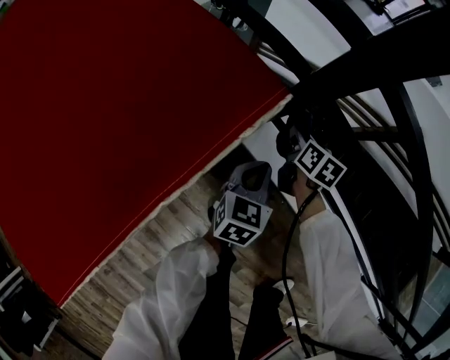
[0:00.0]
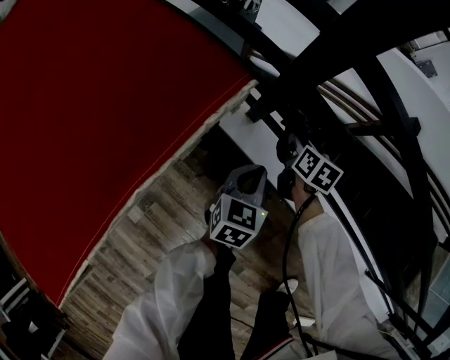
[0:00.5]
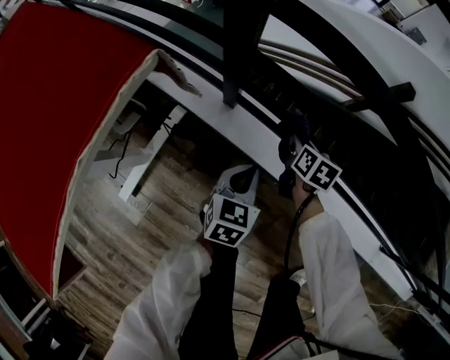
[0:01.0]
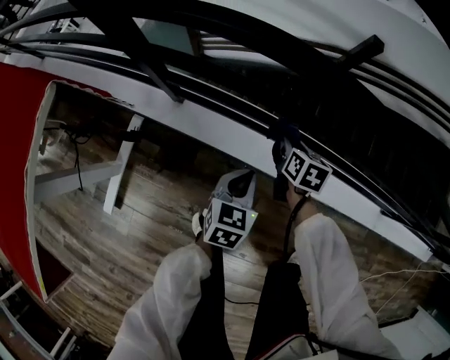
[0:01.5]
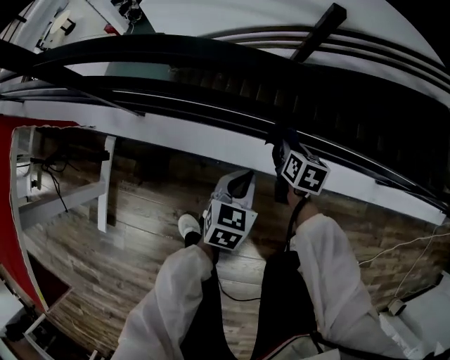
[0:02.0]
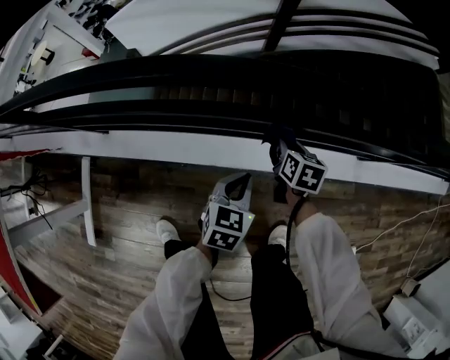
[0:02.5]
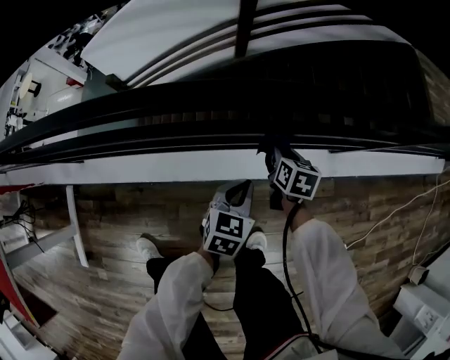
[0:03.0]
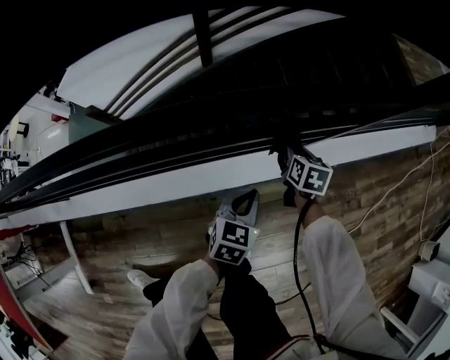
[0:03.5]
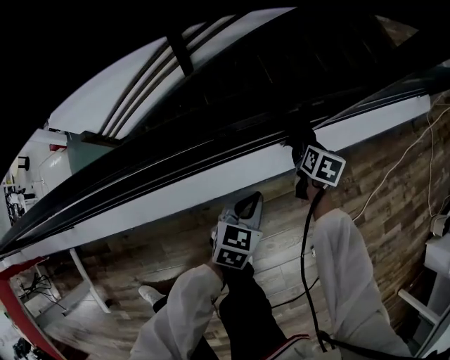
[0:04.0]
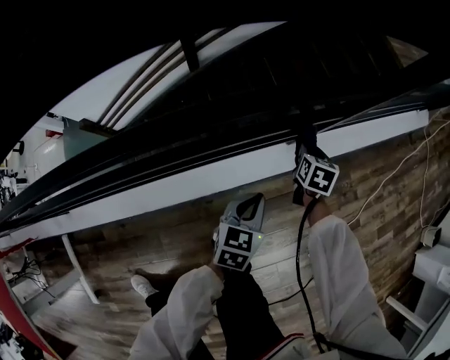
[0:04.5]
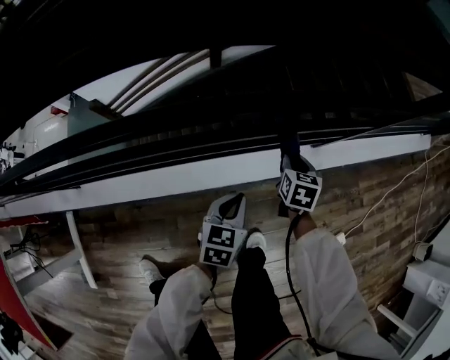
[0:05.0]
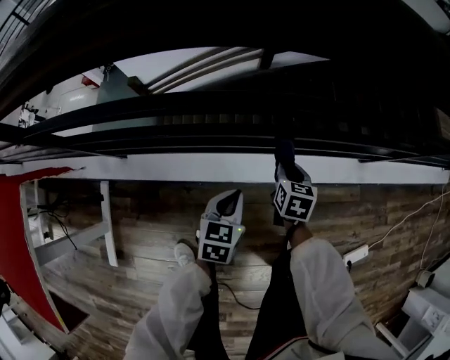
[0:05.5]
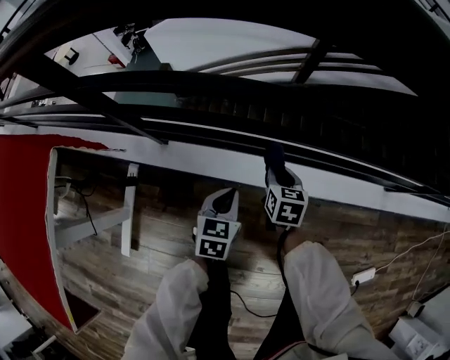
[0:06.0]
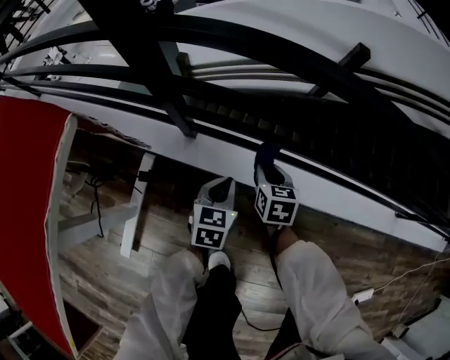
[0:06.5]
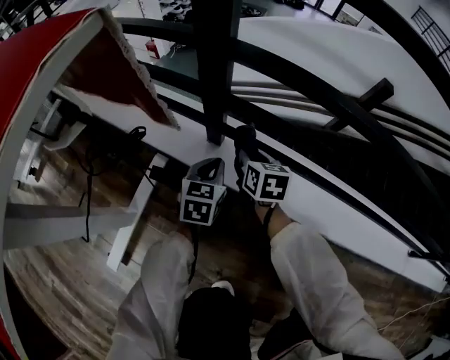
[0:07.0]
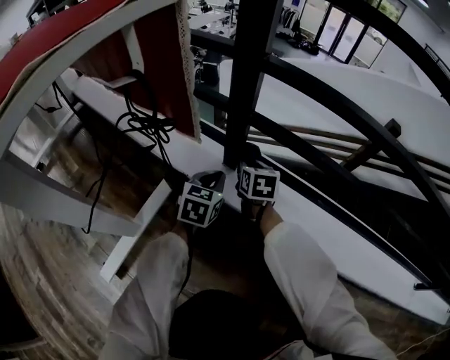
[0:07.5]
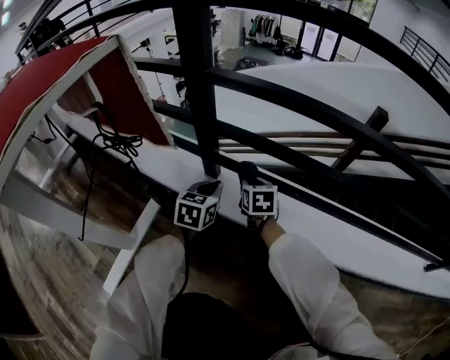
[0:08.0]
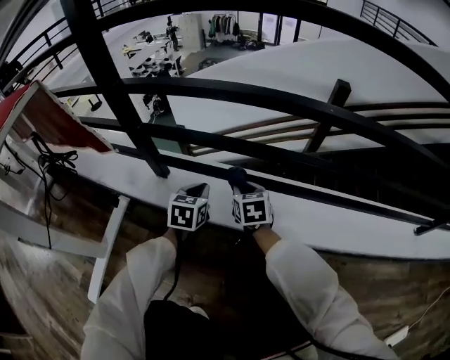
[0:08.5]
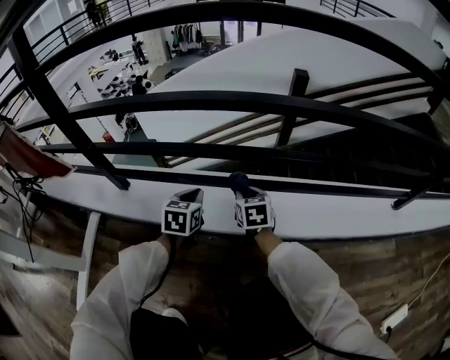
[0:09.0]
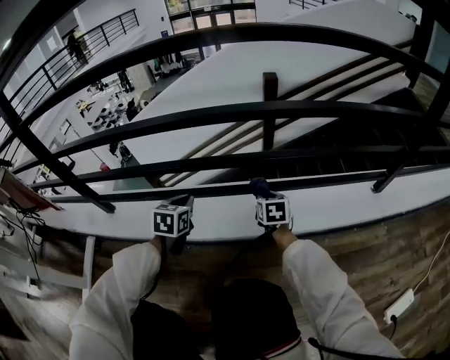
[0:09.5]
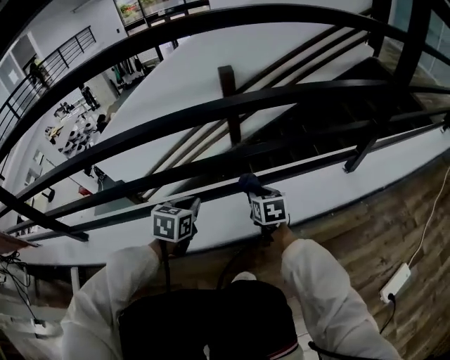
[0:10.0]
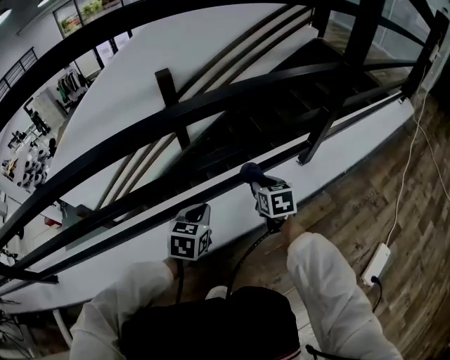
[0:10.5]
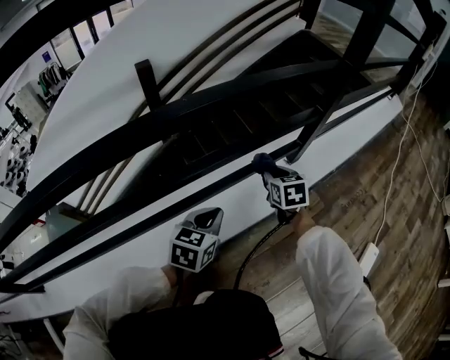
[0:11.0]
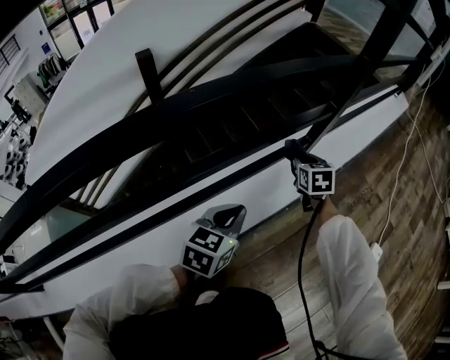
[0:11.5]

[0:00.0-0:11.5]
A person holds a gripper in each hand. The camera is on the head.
0:00.0 to 0:02.0: The pair of grippers is taken roughly 50 cm. The left gripper turns by roughly 30 degrees. Meanwhile the right gripper changes its angle by approximately 30 degrees.
0:02.0 to 0:04.0: The two grippers travel together, about 60 cm. The left gripper changes its angle by approximately 30 degrees. The right gripper rotates roughly 30 degrees.
0:04.0 to 0:06.0: Both grippers are carried about 80 cm. The left gripper swivels some 40 degrees. The right gripper turns by about 40 degrees.
0:06.0 to 0:07.5: The grippers both shift to the left and downward by some 40 cm. The left gripper changes its angle by roughly 20 degrees; the right gripper swivels about 30 degrees.
0:07.5 to 0:09.5: The pair of grippers is taken roughly 60 cm. The right gripper rotates about 30 degrees. The left gripper swivels some 20 degrees.
0:09.5 to 0:11.5: Both grippers are carried some 50 cm. The left gripper rotates about 50 degrees. Meanwhile the right gripper turns by approximately 30 degrees.

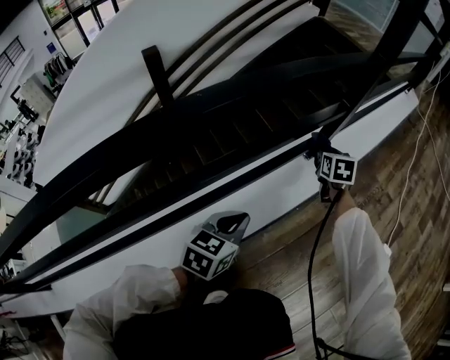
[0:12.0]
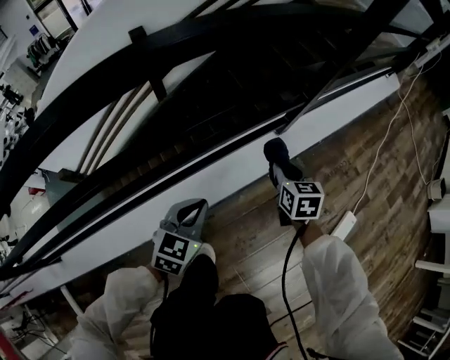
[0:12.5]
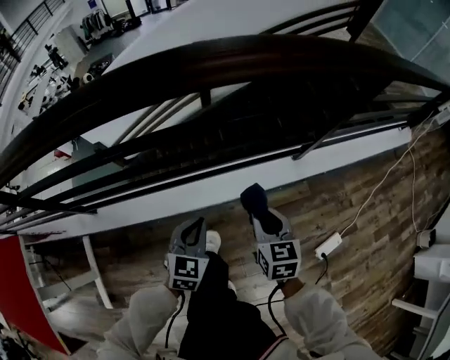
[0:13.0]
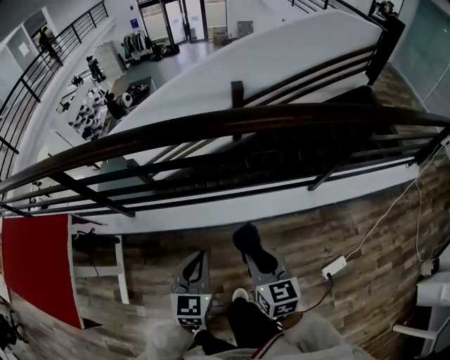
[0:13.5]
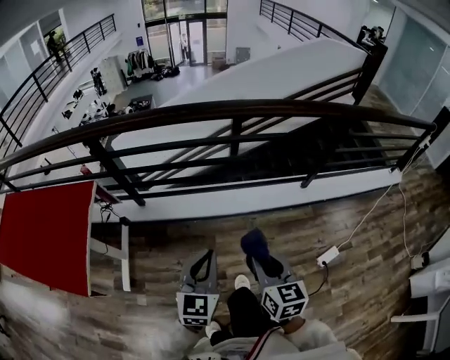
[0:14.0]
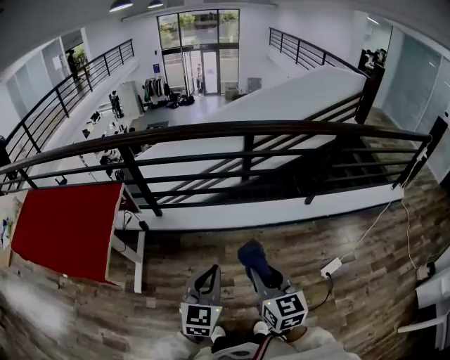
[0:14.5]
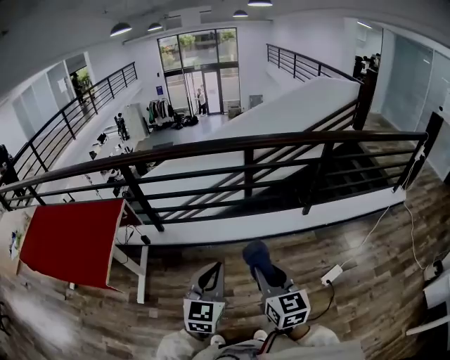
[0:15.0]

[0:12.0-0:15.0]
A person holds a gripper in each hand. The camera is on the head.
0:12.0 to 0:13.5: The two grippers travel together, about 50 cm. Both grippers move upward, about 60 cm. The left gripper rotates some 50 degrees. The right gripper rotates some 50 degrees.
0:13.5 to 0:15.0: The two grippers go about 40 cm backward and upward.

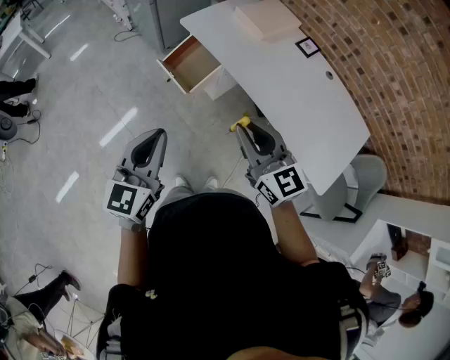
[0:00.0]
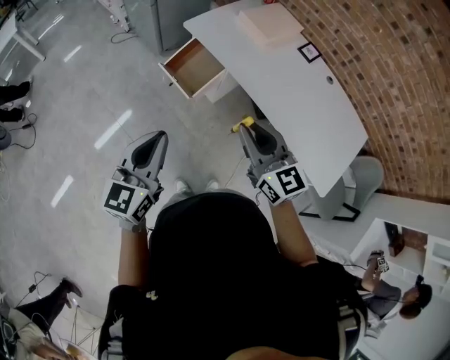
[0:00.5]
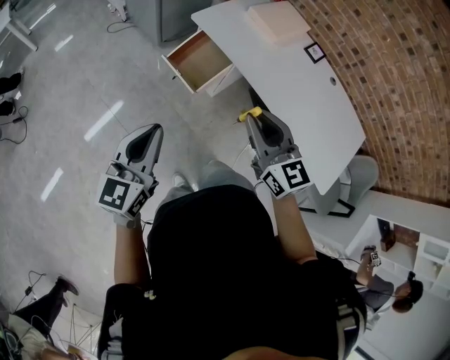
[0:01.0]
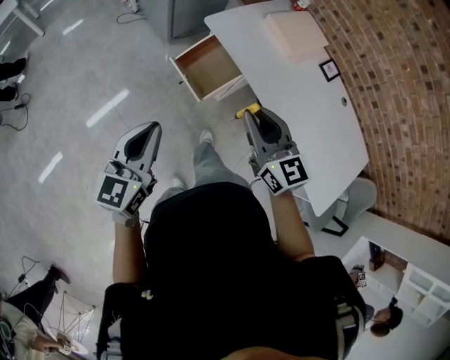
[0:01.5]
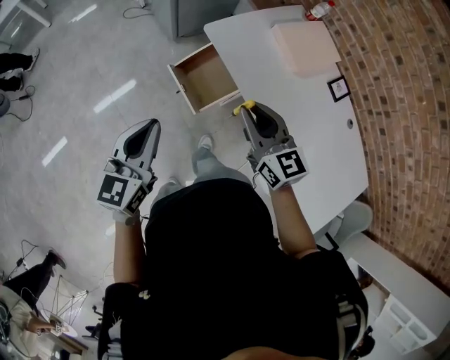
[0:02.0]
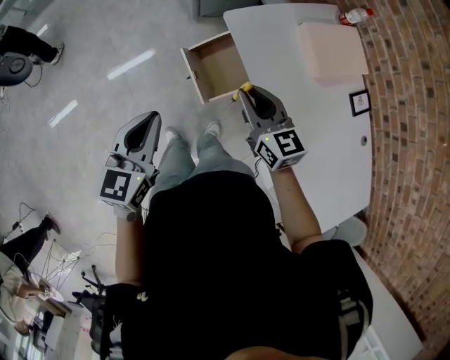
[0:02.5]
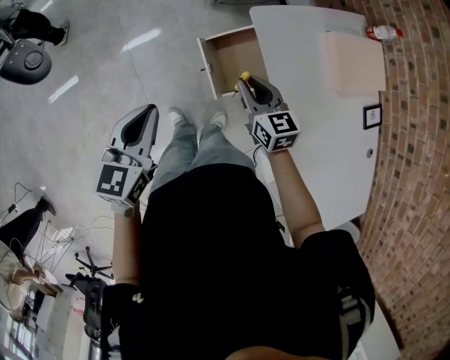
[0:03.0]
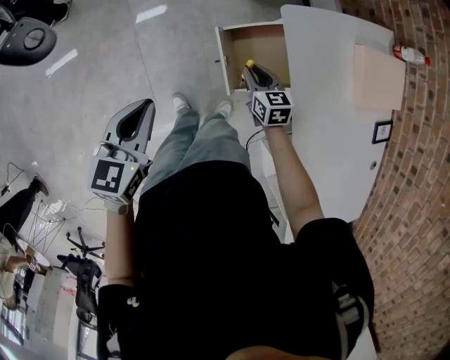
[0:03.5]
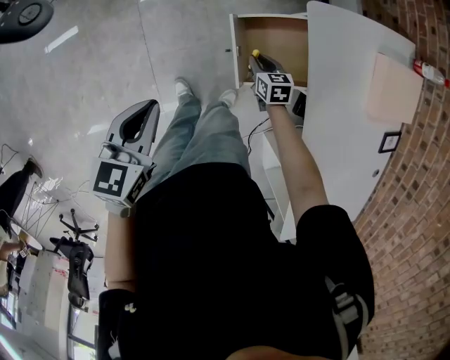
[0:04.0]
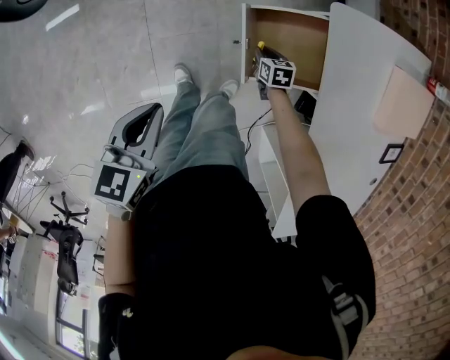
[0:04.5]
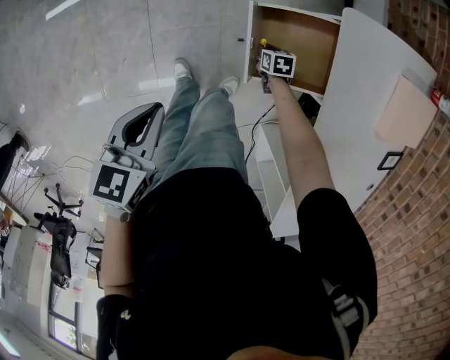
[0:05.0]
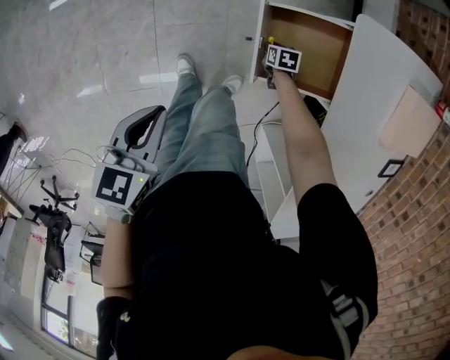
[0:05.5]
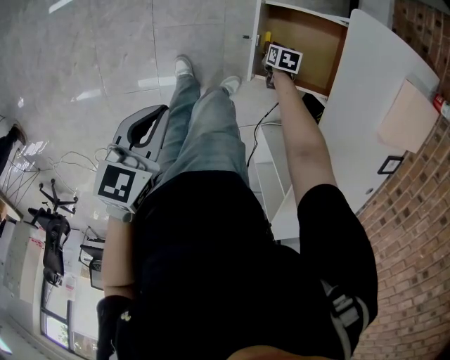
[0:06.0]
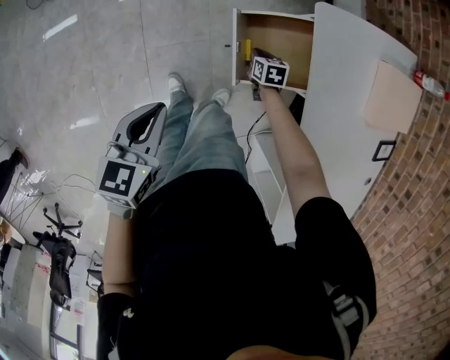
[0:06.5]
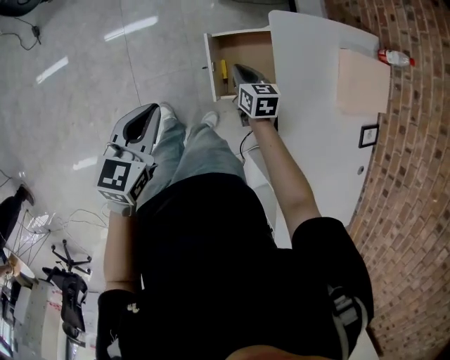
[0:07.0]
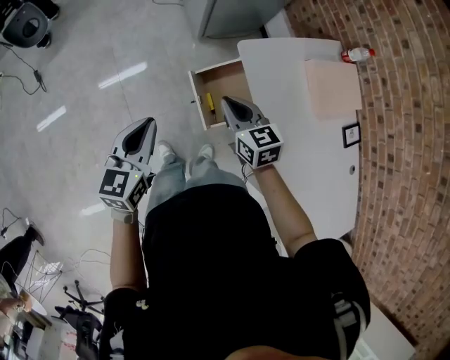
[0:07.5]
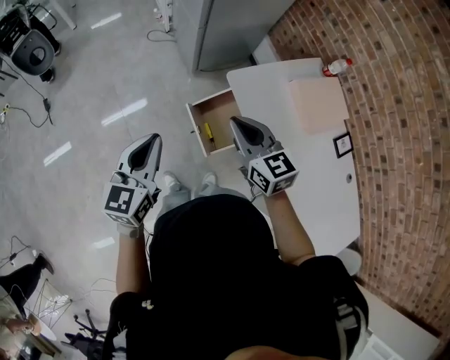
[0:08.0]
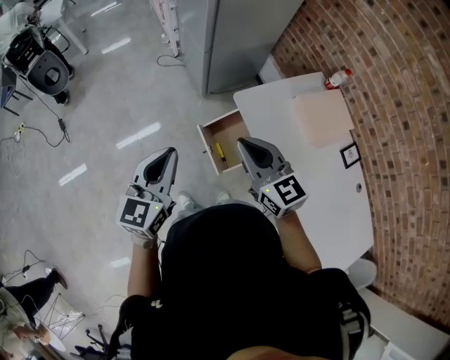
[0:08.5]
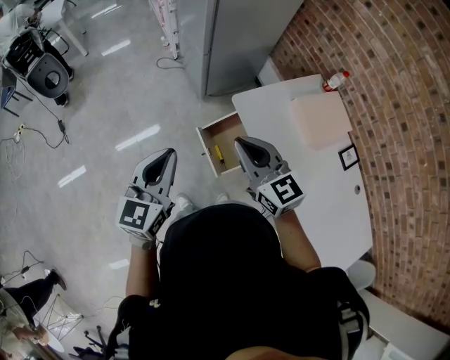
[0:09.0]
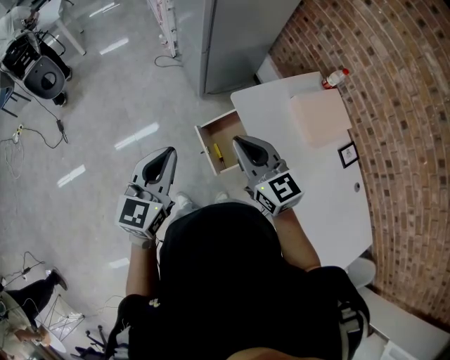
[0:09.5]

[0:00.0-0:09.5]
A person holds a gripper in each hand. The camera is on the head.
0:00.0 to 0:02.0: Both grippers move forward, some 30 cm.
0:02.0 to 0:04.0: The left gripper travels downward, to the left and forward by some 25 cm, and swivels approximately 30 degrees. The right gripper is displaced downward and forward by about 50 cm, and tips its fingers downward by approximately 40 degrees.
0:04.0 to 0:05.5: The left gripper moves downward, some 10 cm; the right gripper goes about 20 cm downward, and swivels about 20 degrees.
0:05.5 to 0:07.5: The left gripper goes approximately 20 cm upward, and rotates some 30 degrees; the right gripper travels upward by about 50 cm, and points its fingers some 40 degrees further upward.
0:07.5 to 0:09.5: Both grippers travel together upward, about 15 cm.

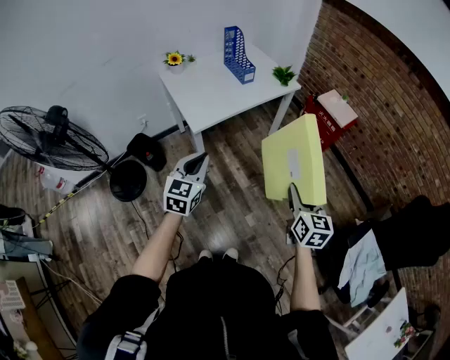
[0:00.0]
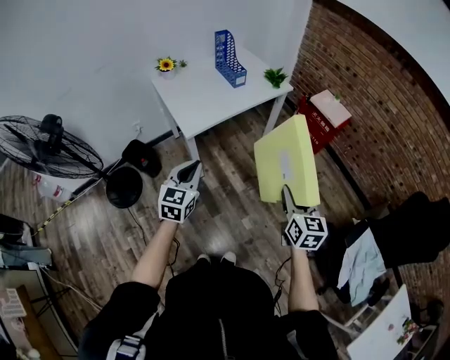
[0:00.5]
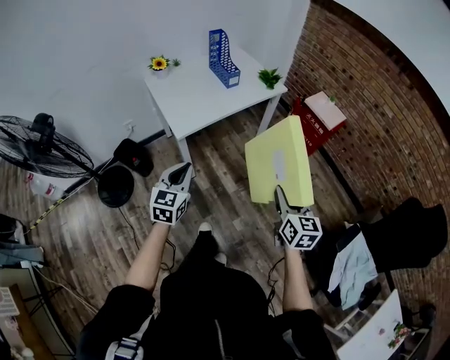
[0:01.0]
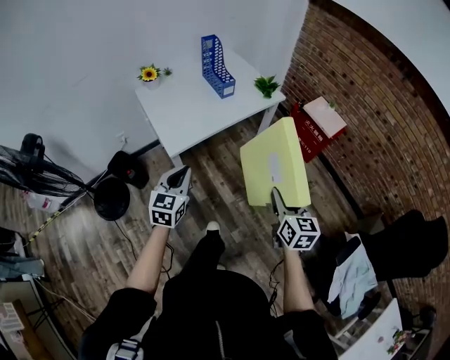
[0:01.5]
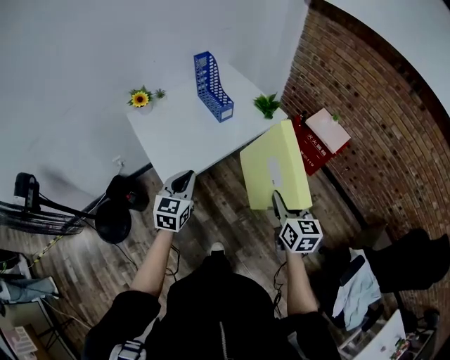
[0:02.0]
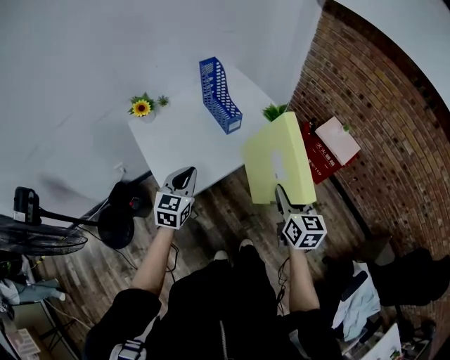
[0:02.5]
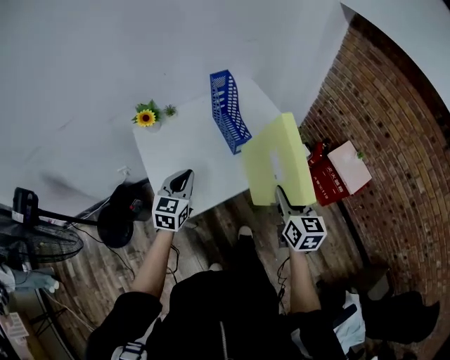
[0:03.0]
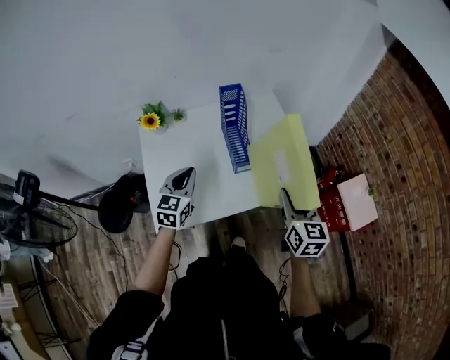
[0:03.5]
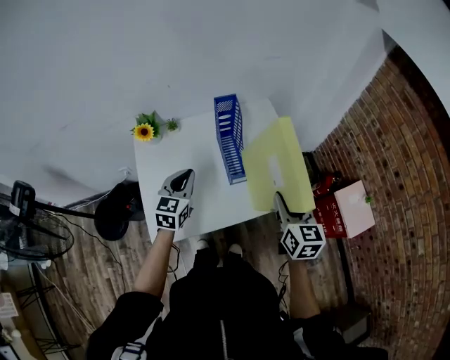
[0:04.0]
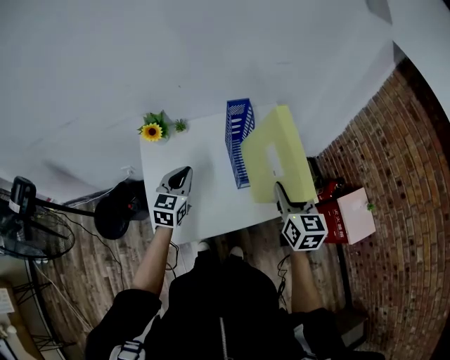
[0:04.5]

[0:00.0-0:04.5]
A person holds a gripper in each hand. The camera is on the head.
0:00.0 to 0:02.0: Both grippers travel together forward, about 25 cm.
0:02.0 to 0:04.5: Both grippers travel together forward, about 40 cm. The left gripper swivels approximately 20 degrees. The right gripper swivels approximately 20 degrees.
